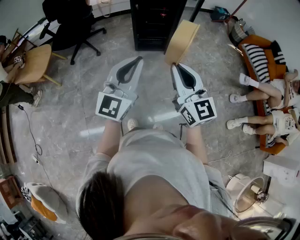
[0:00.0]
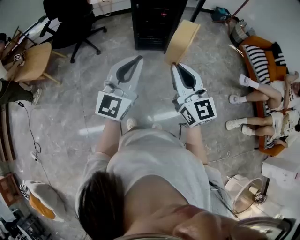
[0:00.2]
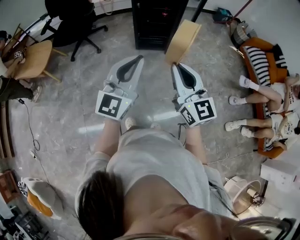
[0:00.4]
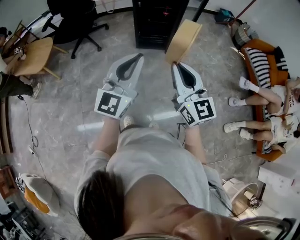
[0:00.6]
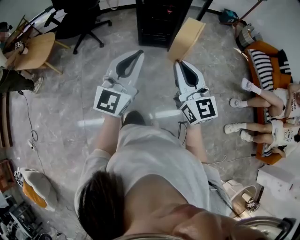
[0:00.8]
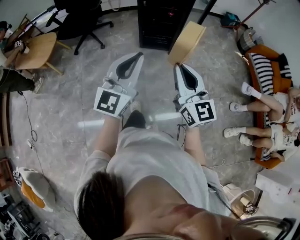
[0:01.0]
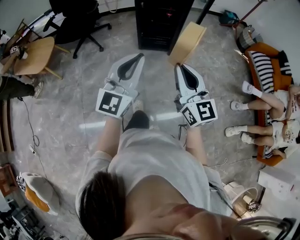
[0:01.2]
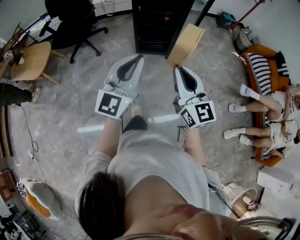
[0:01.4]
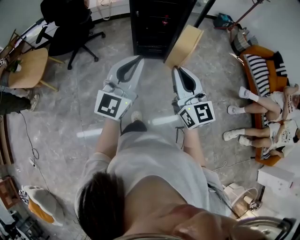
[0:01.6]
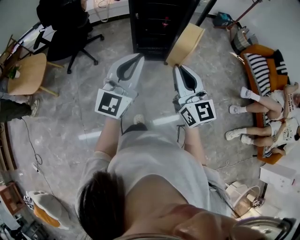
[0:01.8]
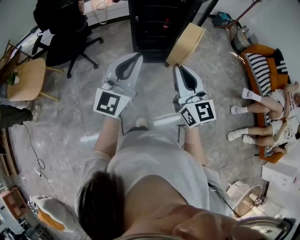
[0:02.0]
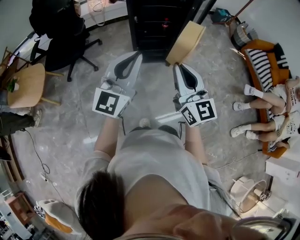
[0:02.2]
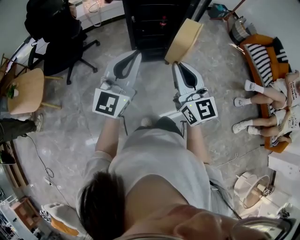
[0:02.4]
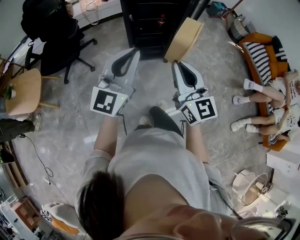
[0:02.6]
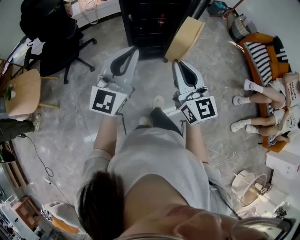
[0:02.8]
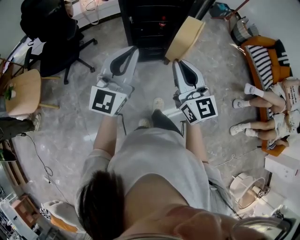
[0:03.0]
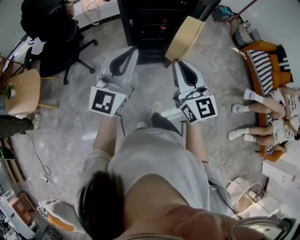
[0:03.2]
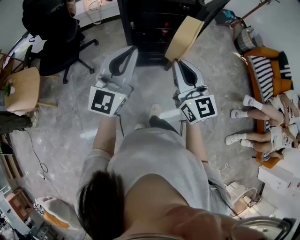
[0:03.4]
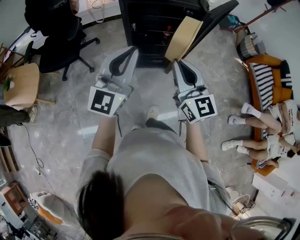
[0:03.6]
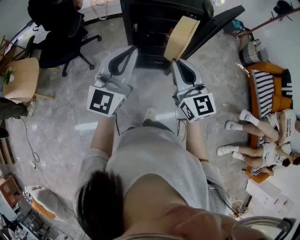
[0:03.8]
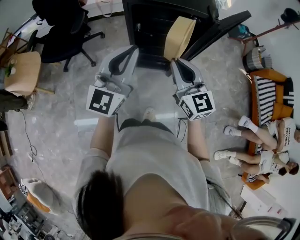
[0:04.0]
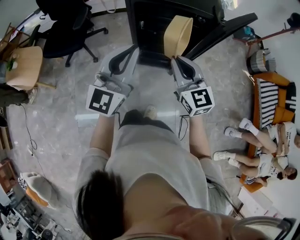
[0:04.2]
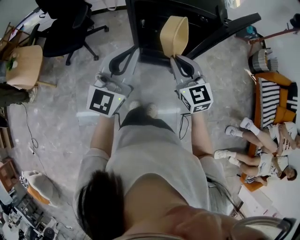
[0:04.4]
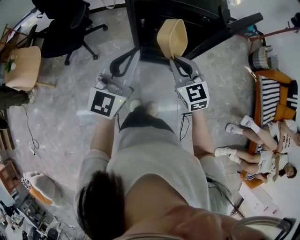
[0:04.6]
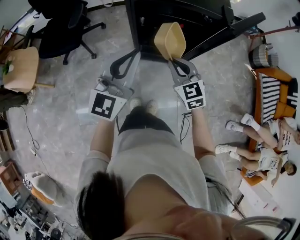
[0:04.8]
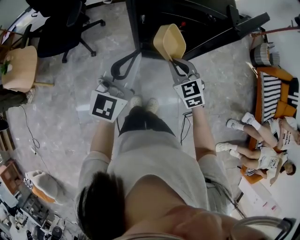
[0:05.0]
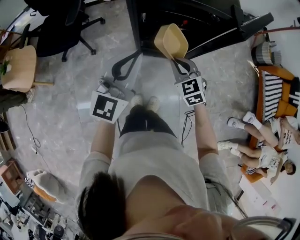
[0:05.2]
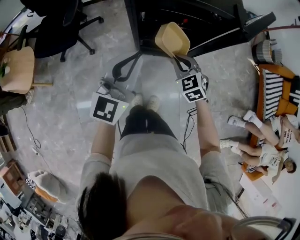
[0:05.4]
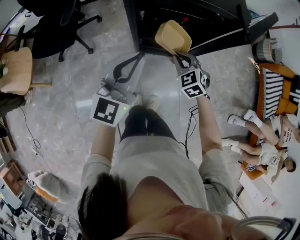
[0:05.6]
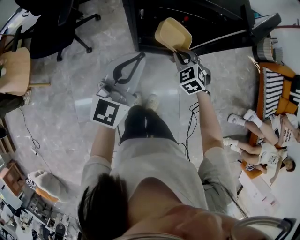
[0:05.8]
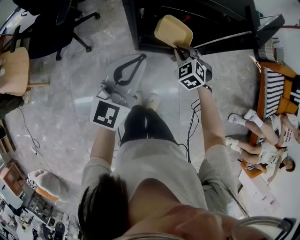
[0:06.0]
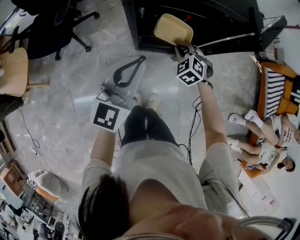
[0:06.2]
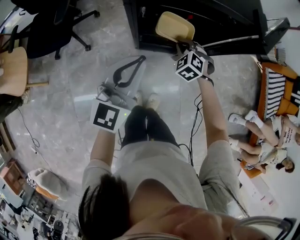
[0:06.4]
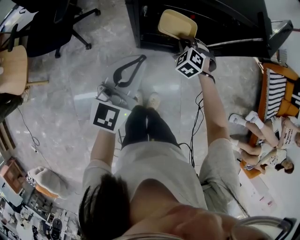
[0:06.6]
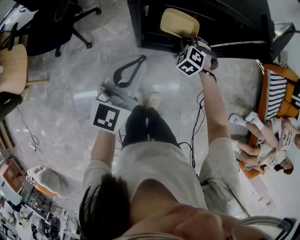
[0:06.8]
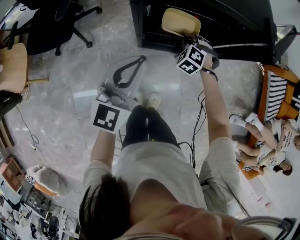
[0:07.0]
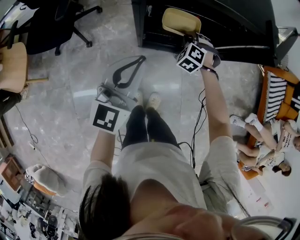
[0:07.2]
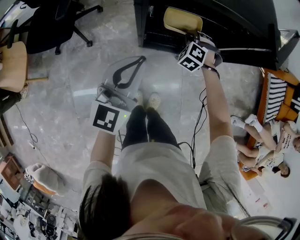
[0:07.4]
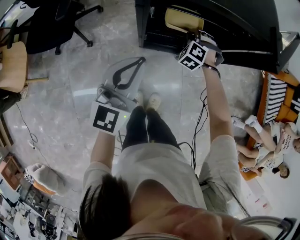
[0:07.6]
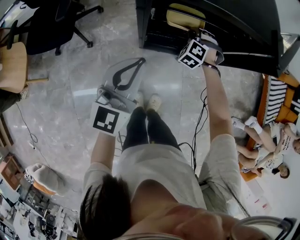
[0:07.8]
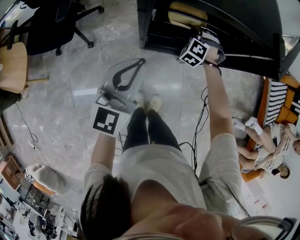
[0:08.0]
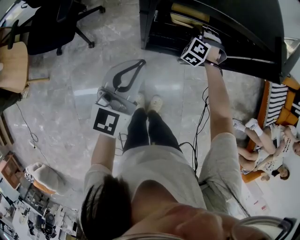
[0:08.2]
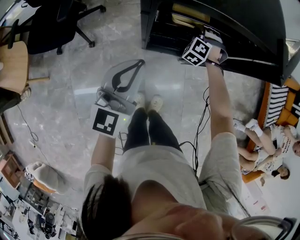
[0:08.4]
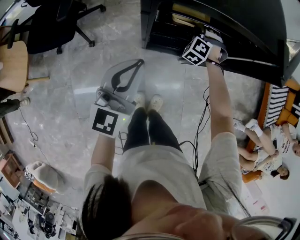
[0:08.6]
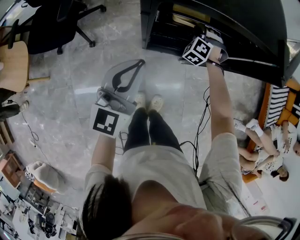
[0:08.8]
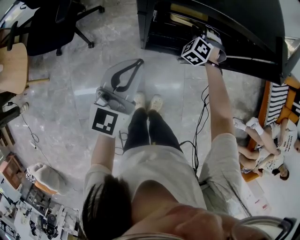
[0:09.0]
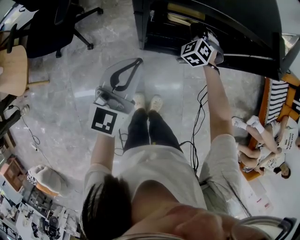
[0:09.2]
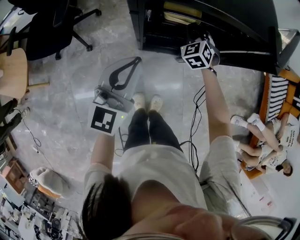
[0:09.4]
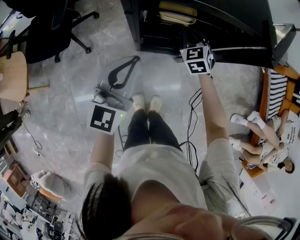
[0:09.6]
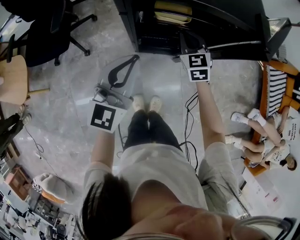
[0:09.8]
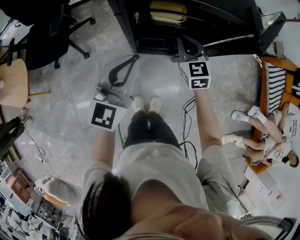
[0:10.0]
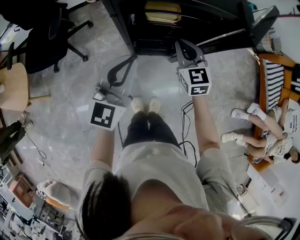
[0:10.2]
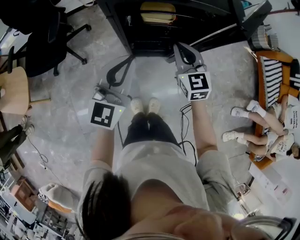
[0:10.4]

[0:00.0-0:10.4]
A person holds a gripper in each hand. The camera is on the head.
0:00.0 to 0:01.4: Both grippers move forward, some 10 cm.
0:01.4 to 0:03.0: The grippers both shift forward by some 25 cm.
0:03.0 to 0:04.4: Both grippers move forward, about 20 cm. The right gripper turns by approximately 30 degrees.
0:04.4 to 0:06.0: The left gripper heads downward and forward, covering approximately 15 cm; the right gripper goes approximately 30 cm downward and forward, and angles its fingers downward, by approximately 40 degrees.
0:06.0 to 0:07.4: The left gripper moves downward, approximately 5 cm. The right gripper heads forward and downward, covering roughly 15 cm, and rotates some 30 degrees.
0:07.4 to 0:09.0: The right gripper moves forward, roughly 5 cm.
0:09.0 to 0:10.4: The left gripper heads to the right and upward, covering approximately 10 cm, while the right gripper travels upward and backward by about 25 cm, and rolls clockwise, seen from behind, by about 50 degrees.

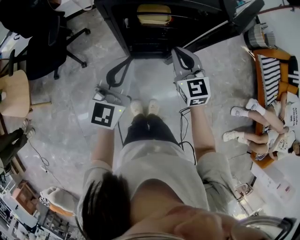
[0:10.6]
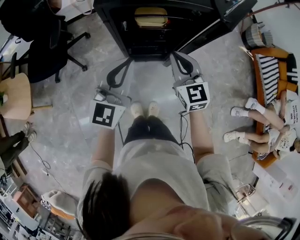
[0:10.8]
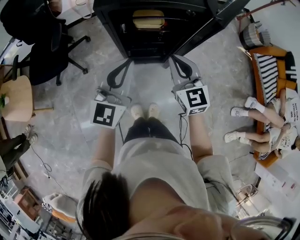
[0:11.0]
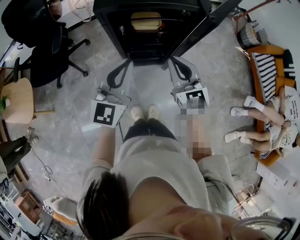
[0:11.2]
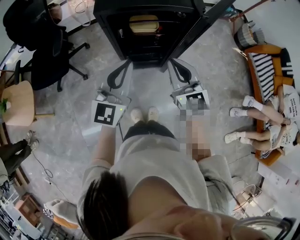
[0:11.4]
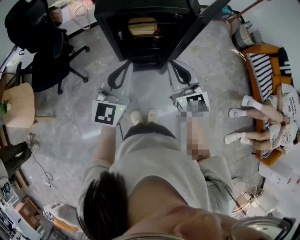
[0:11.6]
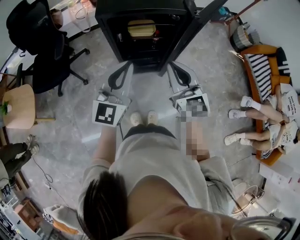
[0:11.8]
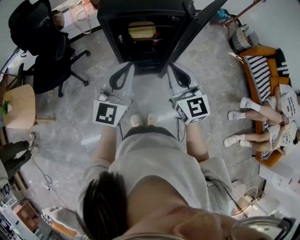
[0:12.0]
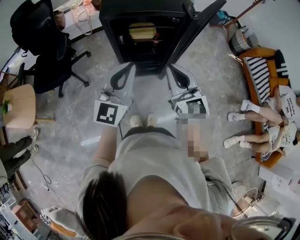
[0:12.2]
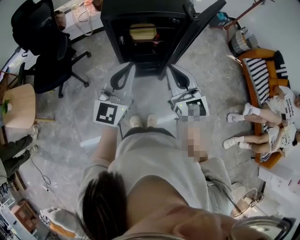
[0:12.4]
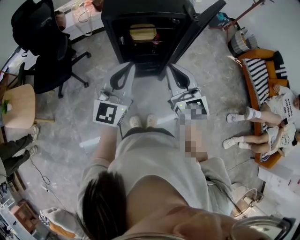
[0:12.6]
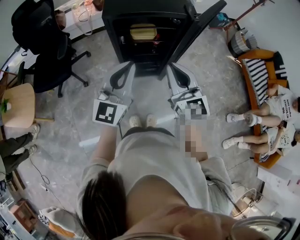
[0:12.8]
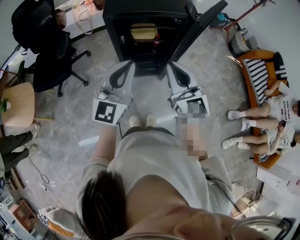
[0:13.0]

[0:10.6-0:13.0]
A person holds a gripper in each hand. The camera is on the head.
0:10.6 to 0:11.8: The right gripper heads upward and backward, covering approximately 20 cm, while the left gripper shifts about 15 cm upward and backward.
0:11.8 to 0:13.0: The grippers move only a little.

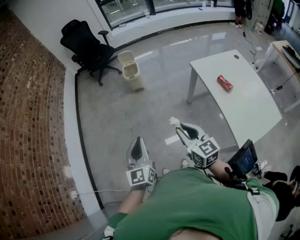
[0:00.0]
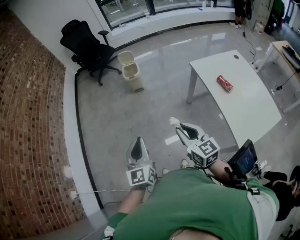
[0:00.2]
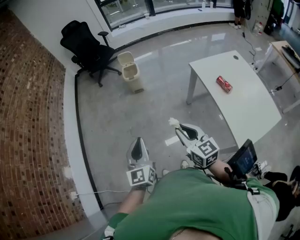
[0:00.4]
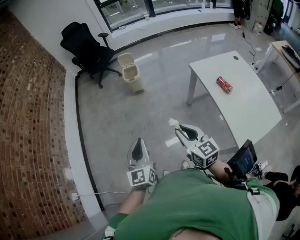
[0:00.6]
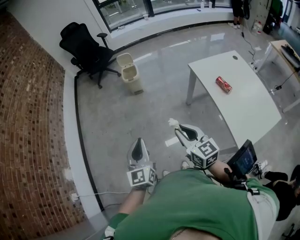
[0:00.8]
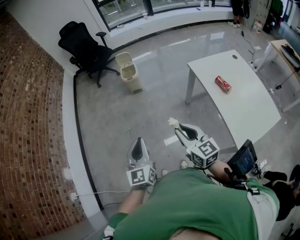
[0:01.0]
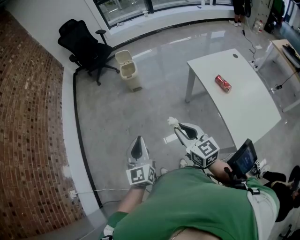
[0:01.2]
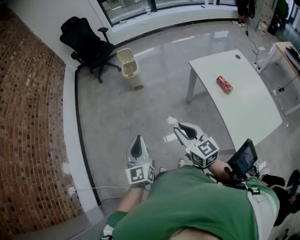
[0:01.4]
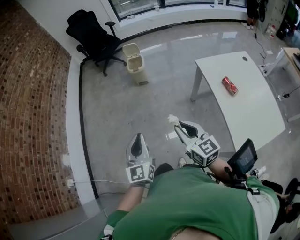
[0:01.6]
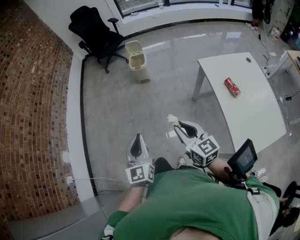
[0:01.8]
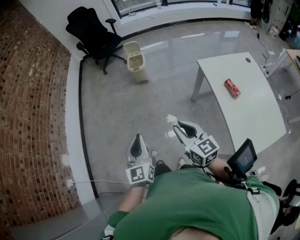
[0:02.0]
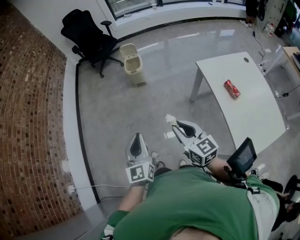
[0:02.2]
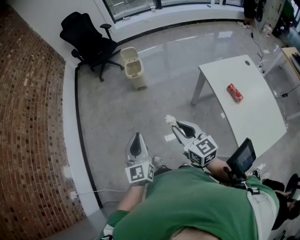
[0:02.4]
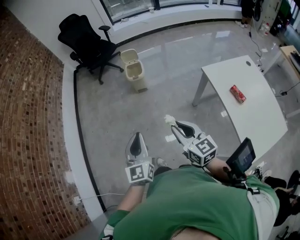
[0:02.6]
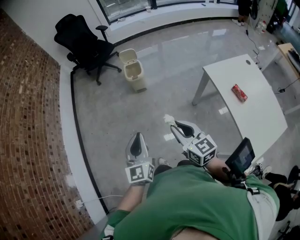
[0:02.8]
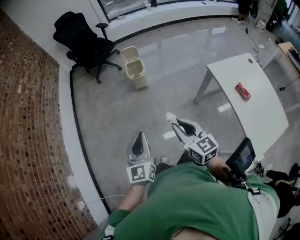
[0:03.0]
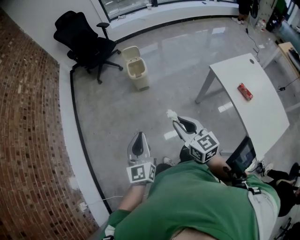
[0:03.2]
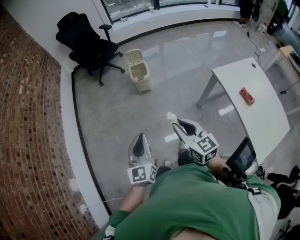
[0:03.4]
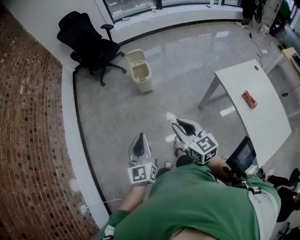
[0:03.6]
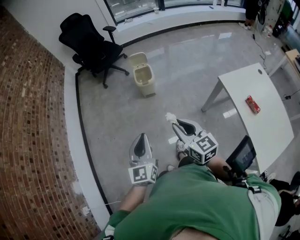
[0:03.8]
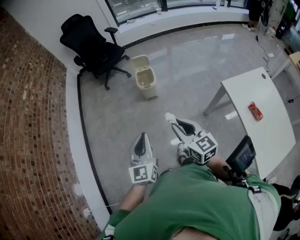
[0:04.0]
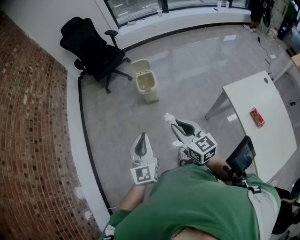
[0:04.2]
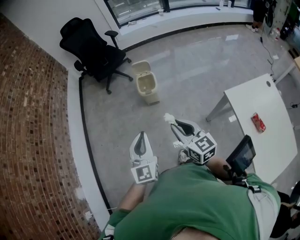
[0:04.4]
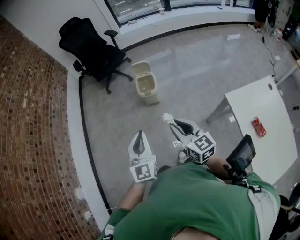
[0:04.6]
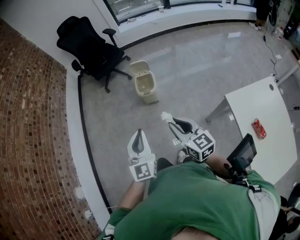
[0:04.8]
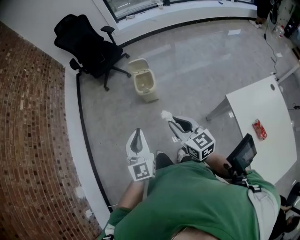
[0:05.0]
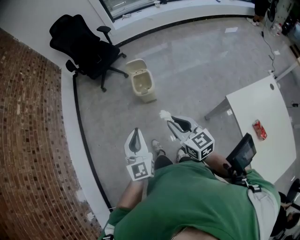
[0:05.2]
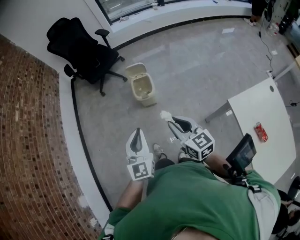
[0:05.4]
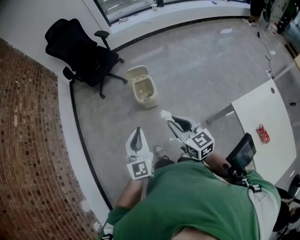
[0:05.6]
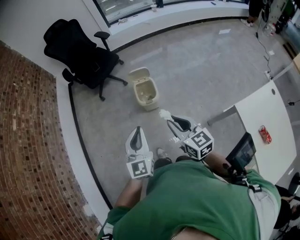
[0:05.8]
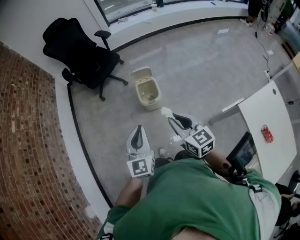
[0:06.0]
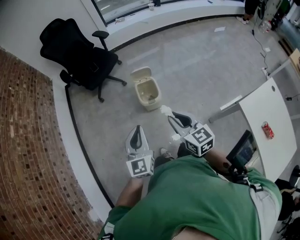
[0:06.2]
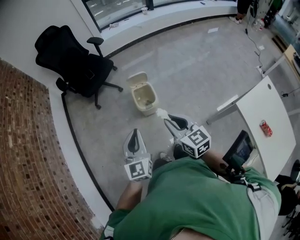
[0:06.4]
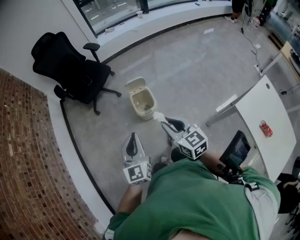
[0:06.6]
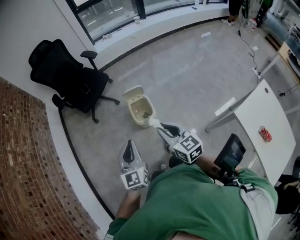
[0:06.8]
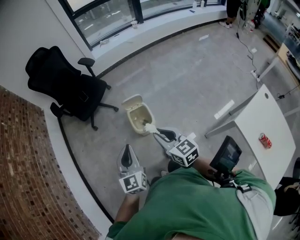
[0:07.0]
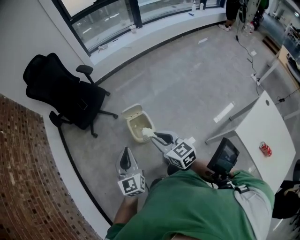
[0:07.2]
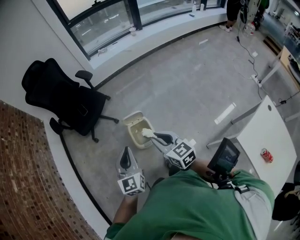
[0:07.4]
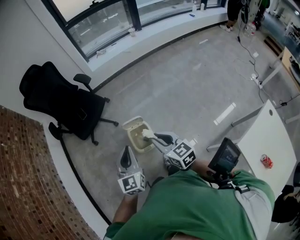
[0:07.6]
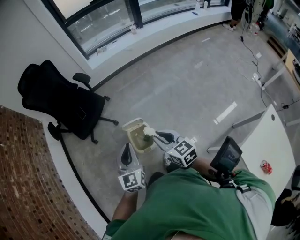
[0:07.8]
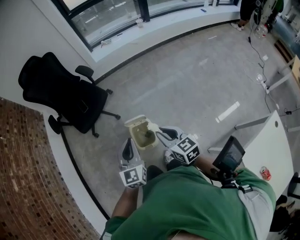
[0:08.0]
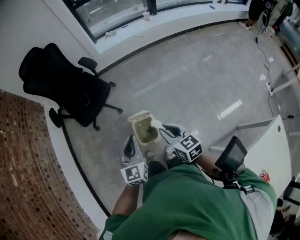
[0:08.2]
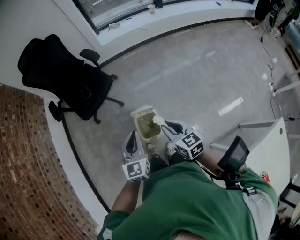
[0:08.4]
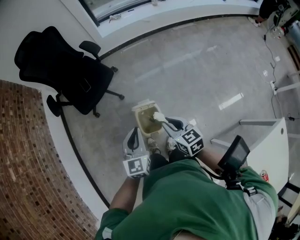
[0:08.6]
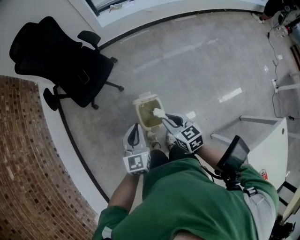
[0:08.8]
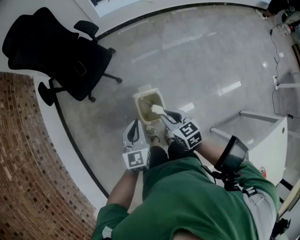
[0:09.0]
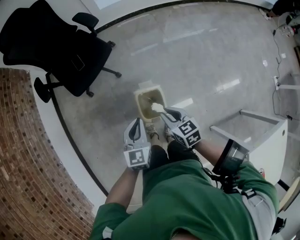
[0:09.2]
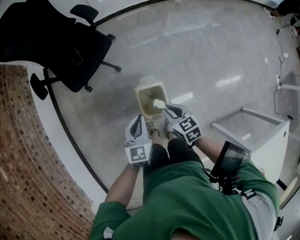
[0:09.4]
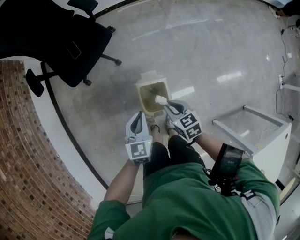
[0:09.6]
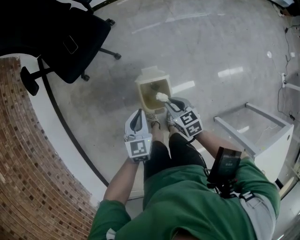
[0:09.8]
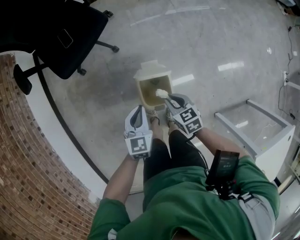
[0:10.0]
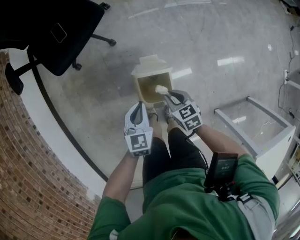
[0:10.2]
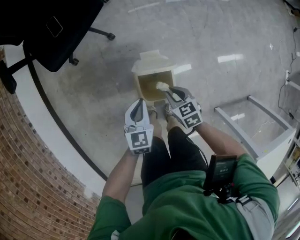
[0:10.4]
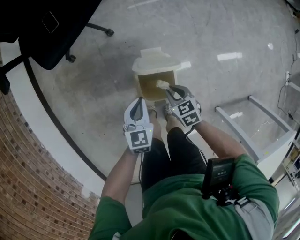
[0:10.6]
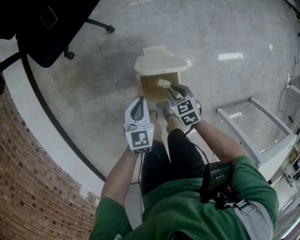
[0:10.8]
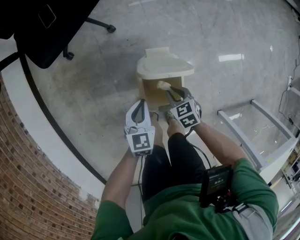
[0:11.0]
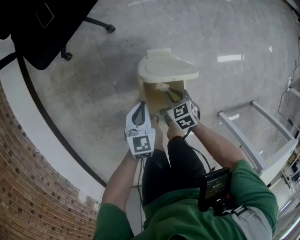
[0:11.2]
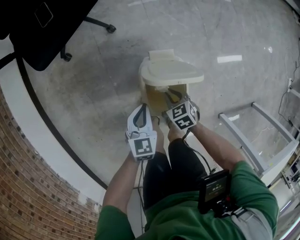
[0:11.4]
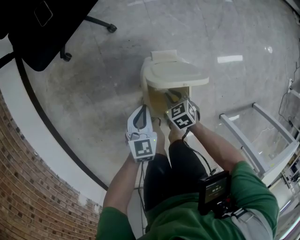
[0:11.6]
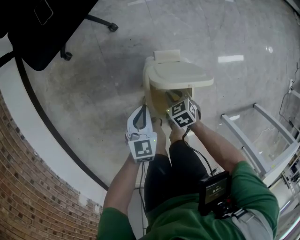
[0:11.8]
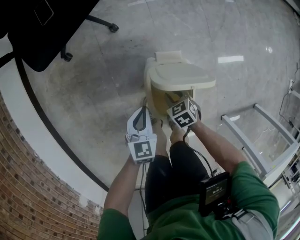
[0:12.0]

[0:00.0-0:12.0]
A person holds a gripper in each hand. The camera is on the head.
0:00.0 to 0:01.6: The grippers make only small movements.
0:01.6 to 0:03.0: The grippers both shift forward and to the left by roughly 20 cm.
0:03.0 to 0:04.4: Both grippers travel together forward, some 20 cm.
0:04.4 to 0:06.0: The grippers both shift forward by about 20 cm.
0:06.0 to 0:07.6: The two grippers go approximately 25 cm forward.
0:07.6 to 0:09.0: The two grippers go roughly 15 cm downward and forward.
0:09.0 to 0:10.4: Both grippers move downward, about 25 cm.
0:10.4 to 0:12.0: The right gripper goes approximately 15 cm downward. Meanwhile the left gripper moves downward and to the left, some 15 cm.
